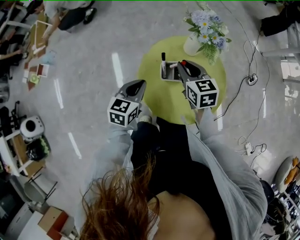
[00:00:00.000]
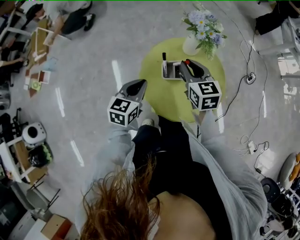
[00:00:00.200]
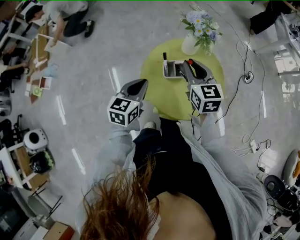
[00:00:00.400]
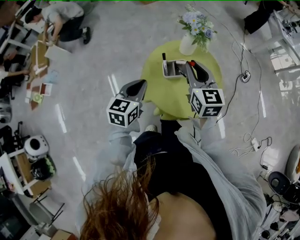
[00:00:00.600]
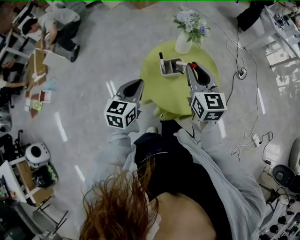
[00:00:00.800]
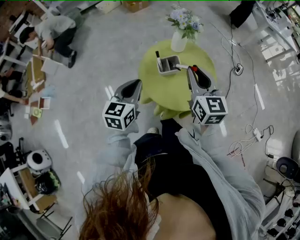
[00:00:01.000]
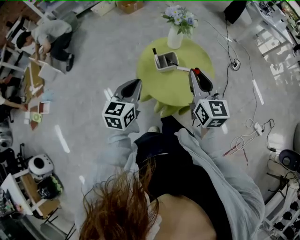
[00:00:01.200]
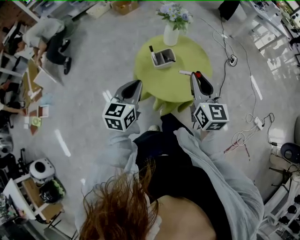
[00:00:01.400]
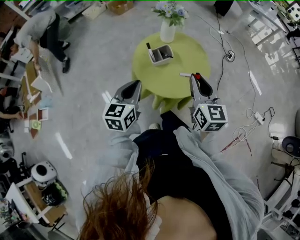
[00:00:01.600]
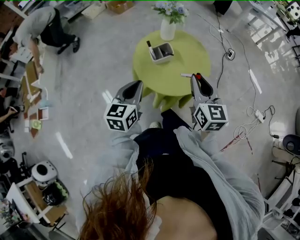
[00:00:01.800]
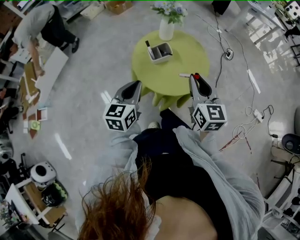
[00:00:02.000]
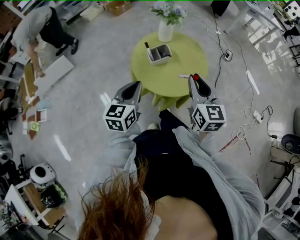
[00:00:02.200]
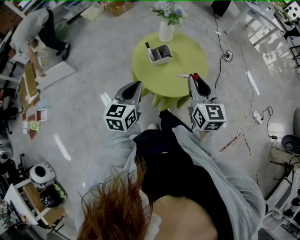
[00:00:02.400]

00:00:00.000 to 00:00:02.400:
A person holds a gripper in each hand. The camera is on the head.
00:00:00.000 to 00:00:01.200: The left gripper travels upward and backward by approximately 15 cm; the right gripper travels backward and upward by roughly 20 cm, and changes its angle by approximately 40 degrees.
00:00:01.200 to 00:00:02.400: The right gripper moves backward, roughly 5 cm.

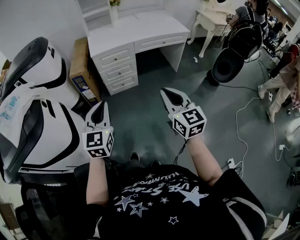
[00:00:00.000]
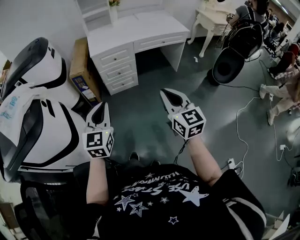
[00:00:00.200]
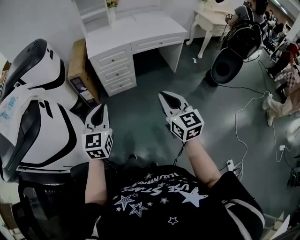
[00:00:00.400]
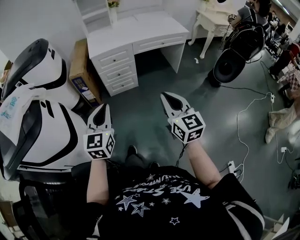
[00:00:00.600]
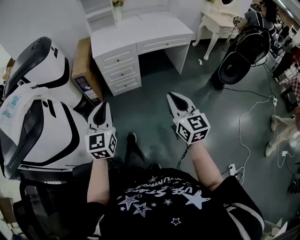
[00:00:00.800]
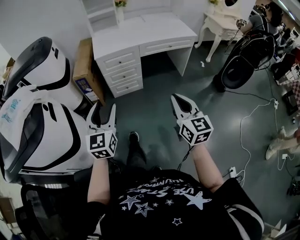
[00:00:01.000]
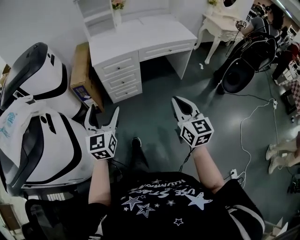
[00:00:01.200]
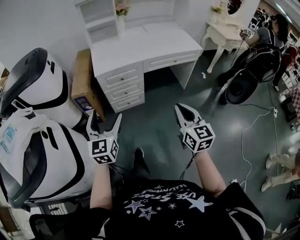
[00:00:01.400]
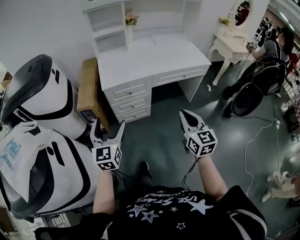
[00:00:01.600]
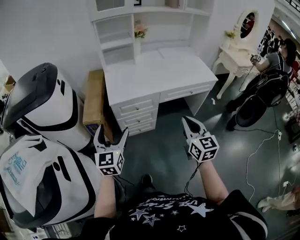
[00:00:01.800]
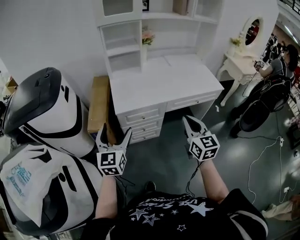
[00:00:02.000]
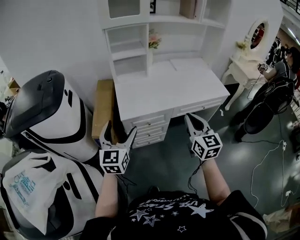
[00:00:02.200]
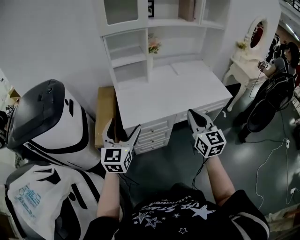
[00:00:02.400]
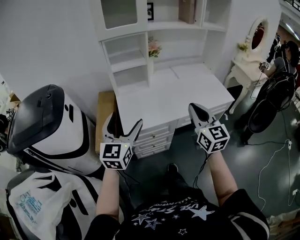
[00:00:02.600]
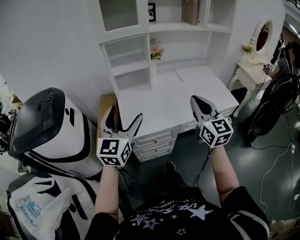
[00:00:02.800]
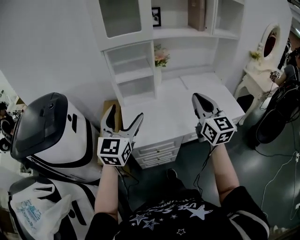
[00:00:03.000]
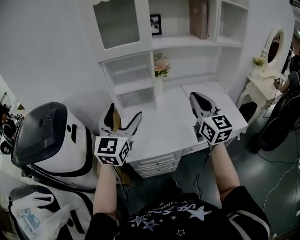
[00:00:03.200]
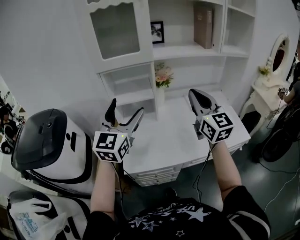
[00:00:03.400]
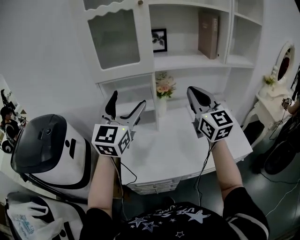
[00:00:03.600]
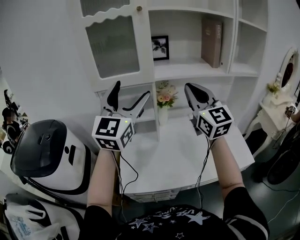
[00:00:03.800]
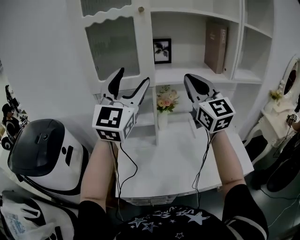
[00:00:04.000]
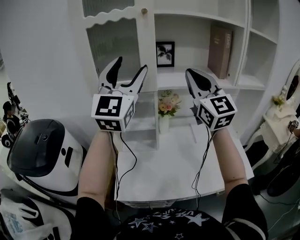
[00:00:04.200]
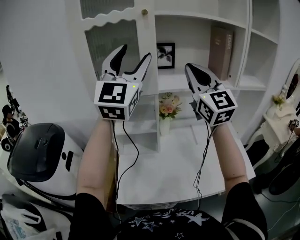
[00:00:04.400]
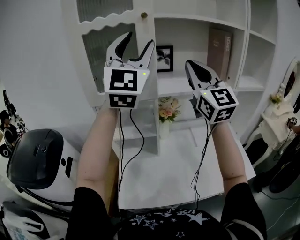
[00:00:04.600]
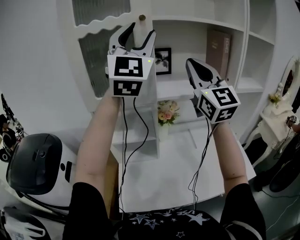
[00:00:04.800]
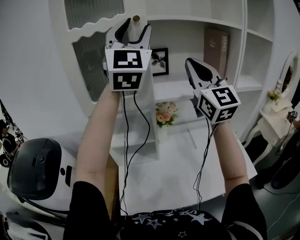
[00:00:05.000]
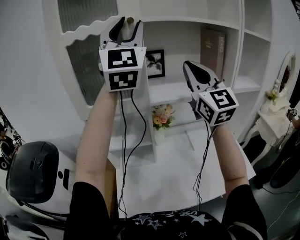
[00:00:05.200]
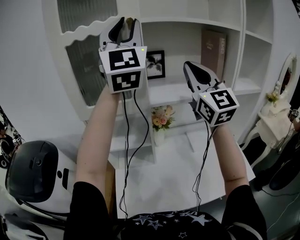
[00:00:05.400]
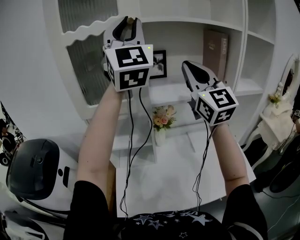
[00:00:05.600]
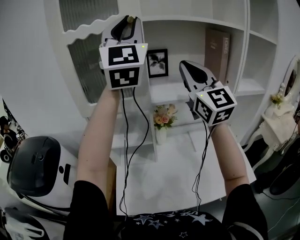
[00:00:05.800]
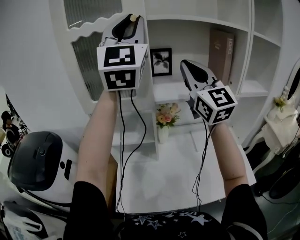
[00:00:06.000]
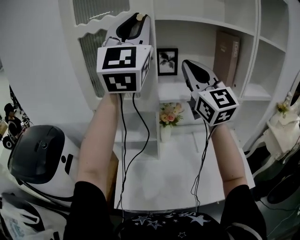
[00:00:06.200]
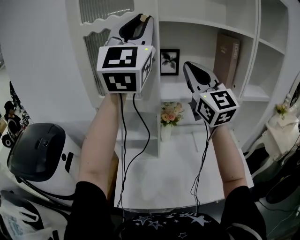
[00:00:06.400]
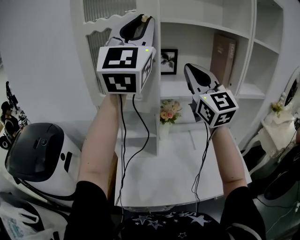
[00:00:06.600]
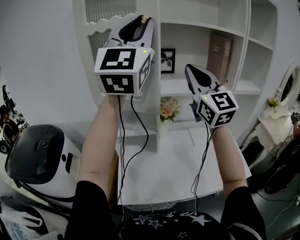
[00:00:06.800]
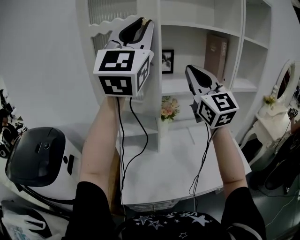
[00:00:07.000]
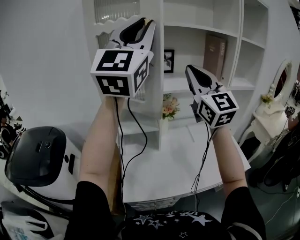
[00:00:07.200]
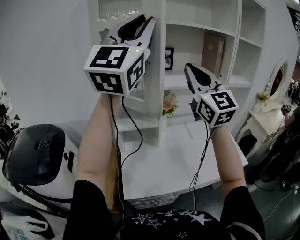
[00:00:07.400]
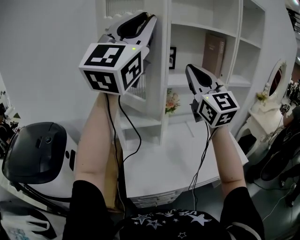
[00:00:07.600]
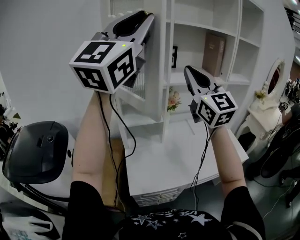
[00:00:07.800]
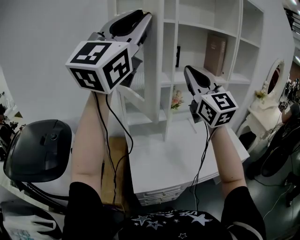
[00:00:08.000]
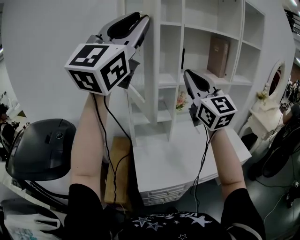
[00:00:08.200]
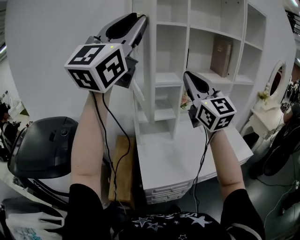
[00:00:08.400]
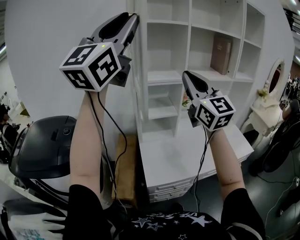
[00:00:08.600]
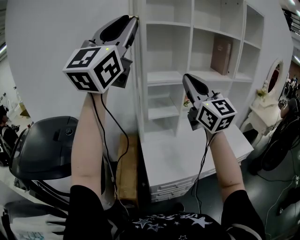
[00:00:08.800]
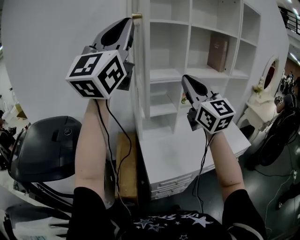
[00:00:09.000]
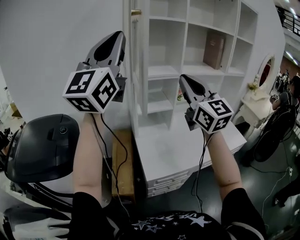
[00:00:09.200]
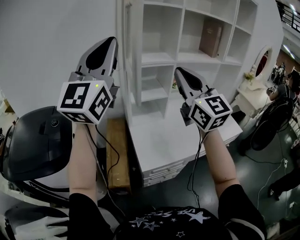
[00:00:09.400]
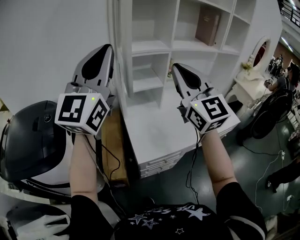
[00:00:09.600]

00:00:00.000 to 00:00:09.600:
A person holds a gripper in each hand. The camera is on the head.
00:00:00.000 to 00:00:01.600: The two grippers go about 25 cm forward. The left gripper opens its fingers.
00:00:01.600 to 00:00:03.200: Both grippers are carried forward, roughly 40 cm. Both grippers travel together upward, about 20 cm.
00:00:03.200 to 00:00:04.800: The right gripper moves forward and upward, about 35 cm, and turns by about 20 degrees. The left gripper shifts roughly 40 cm upward and forward, changes its angle by about 40 degrees, and closes.
00:00:04.800 to 00:00:06.400: The grippers stay close to where they were, moving slightly.
00:00:06.400 to 00:00:08.000: Both grippers move backward and to the left, roughly 20 cm. The left gripper swivels some 30 degrees.
00:00:08.000 to 00:00:09.600: The left gripper is displaced downward and to the left by approximately 20 cm. The right gripper goes approximately 15 cm backward, to the left and downward.

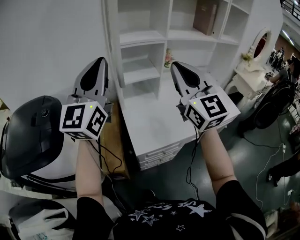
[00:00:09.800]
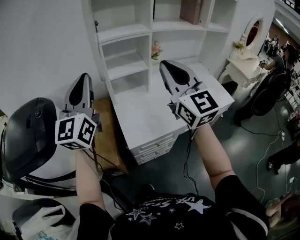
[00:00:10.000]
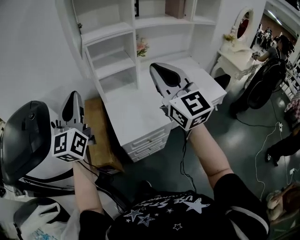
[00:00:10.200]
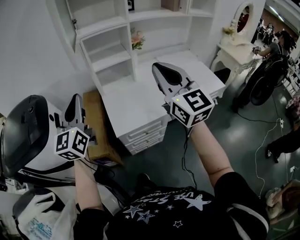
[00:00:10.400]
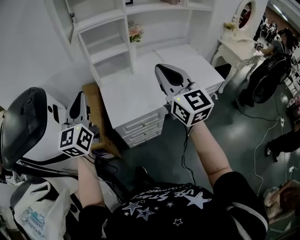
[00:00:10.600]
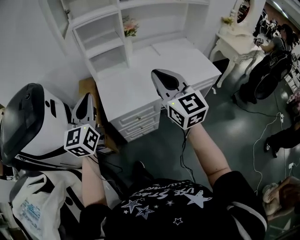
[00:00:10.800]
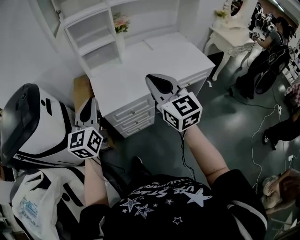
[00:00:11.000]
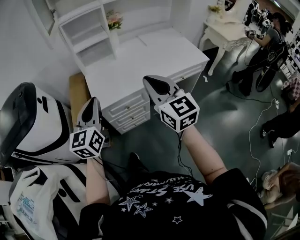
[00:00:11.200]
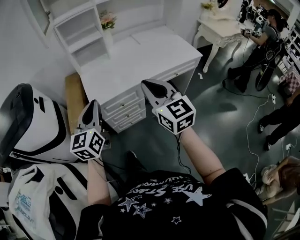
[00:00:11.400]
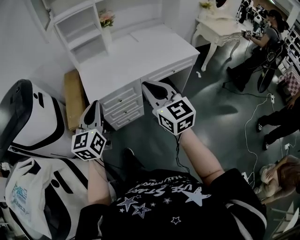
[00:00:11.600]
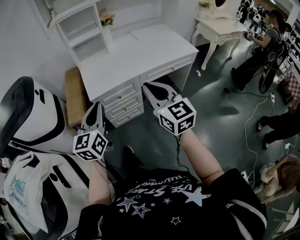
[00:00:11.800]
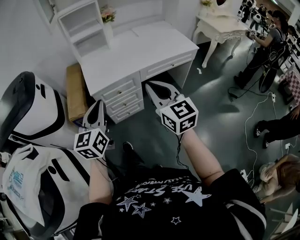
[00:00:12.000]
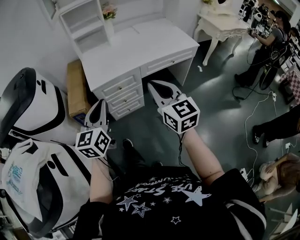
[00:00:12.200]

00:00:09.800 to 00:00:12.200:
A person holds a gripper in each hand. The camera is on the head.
00:00:09.800 to 00:00:11.000: The right gripper heads backward, downward and to the right, covering some 30 cm, while the left gripper moves downward, backward and to the right, about 30 cm, and swivels roughly 30 degrees.
00:00:11.000 to 00:00:12.200: The right gripper shifts approximately 20 cm backward. Meanwhile the left gripper travels backward and to the right by some 20 cm.

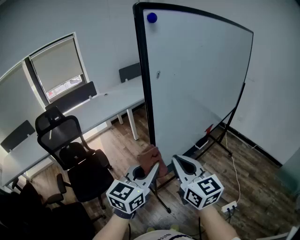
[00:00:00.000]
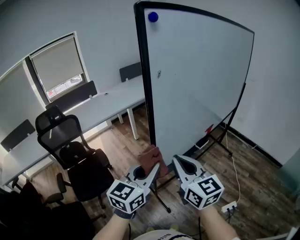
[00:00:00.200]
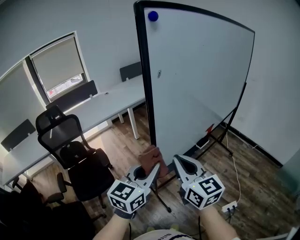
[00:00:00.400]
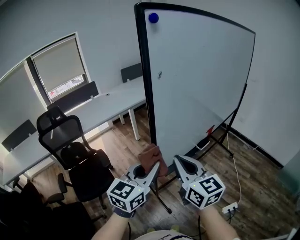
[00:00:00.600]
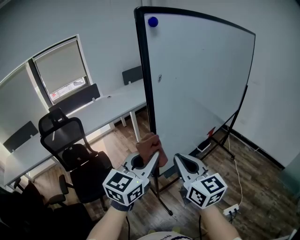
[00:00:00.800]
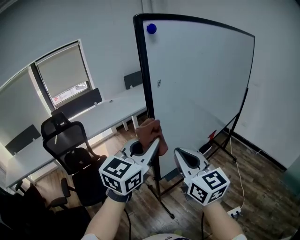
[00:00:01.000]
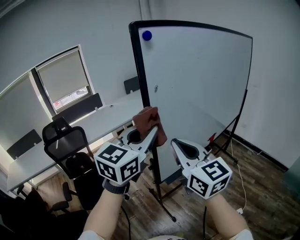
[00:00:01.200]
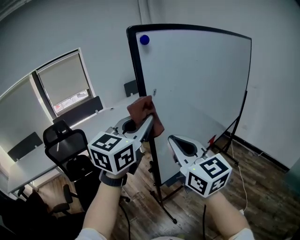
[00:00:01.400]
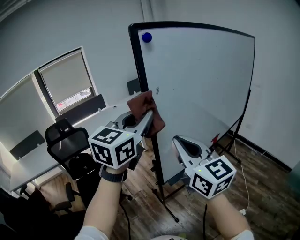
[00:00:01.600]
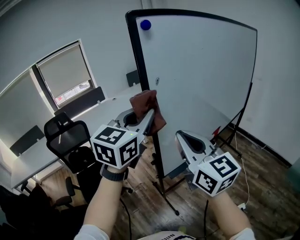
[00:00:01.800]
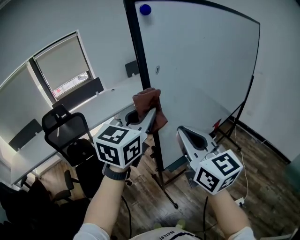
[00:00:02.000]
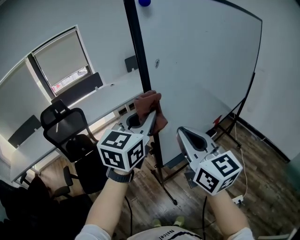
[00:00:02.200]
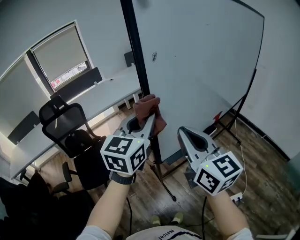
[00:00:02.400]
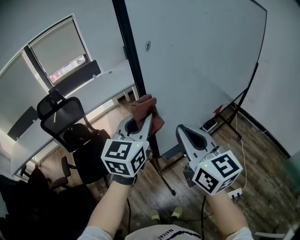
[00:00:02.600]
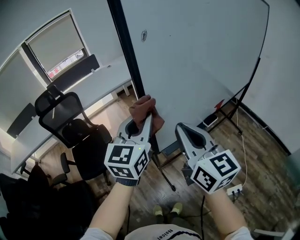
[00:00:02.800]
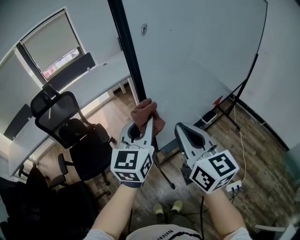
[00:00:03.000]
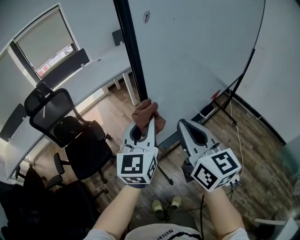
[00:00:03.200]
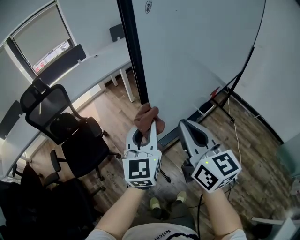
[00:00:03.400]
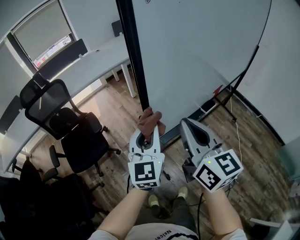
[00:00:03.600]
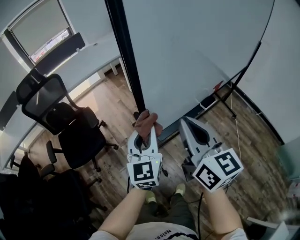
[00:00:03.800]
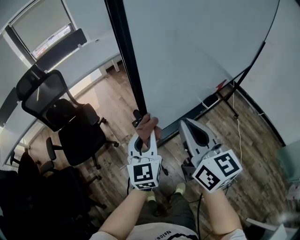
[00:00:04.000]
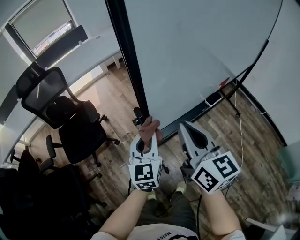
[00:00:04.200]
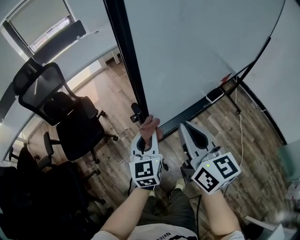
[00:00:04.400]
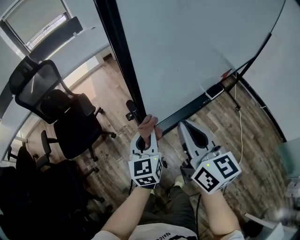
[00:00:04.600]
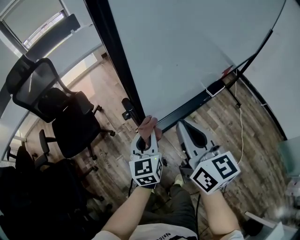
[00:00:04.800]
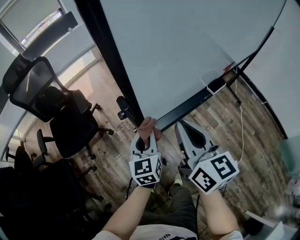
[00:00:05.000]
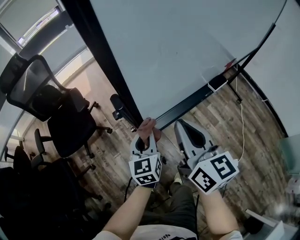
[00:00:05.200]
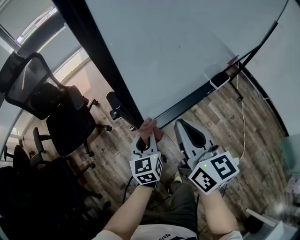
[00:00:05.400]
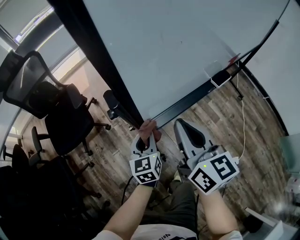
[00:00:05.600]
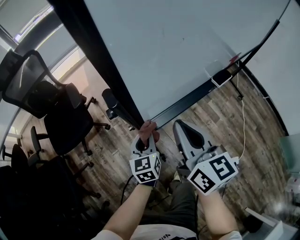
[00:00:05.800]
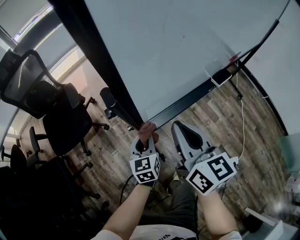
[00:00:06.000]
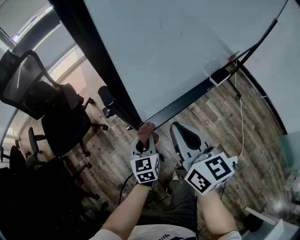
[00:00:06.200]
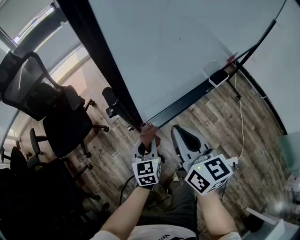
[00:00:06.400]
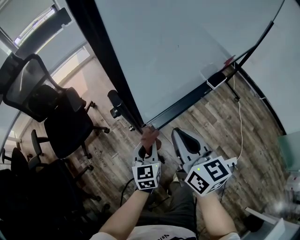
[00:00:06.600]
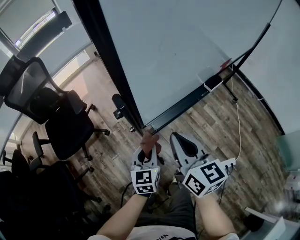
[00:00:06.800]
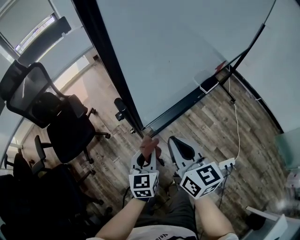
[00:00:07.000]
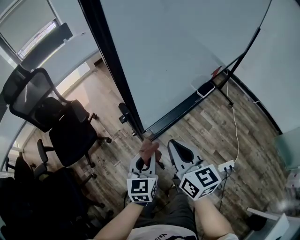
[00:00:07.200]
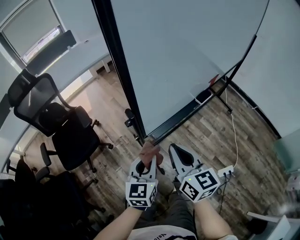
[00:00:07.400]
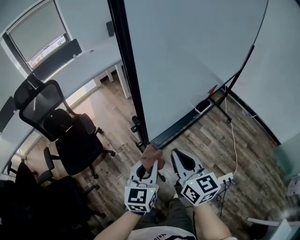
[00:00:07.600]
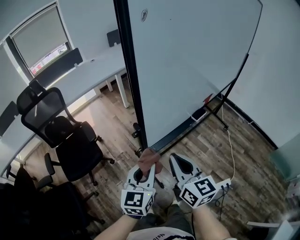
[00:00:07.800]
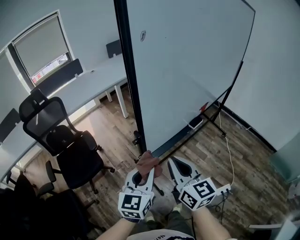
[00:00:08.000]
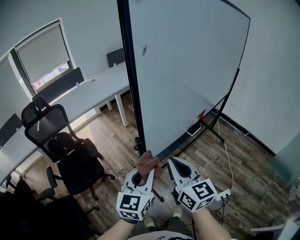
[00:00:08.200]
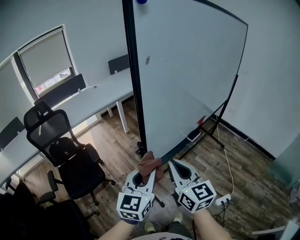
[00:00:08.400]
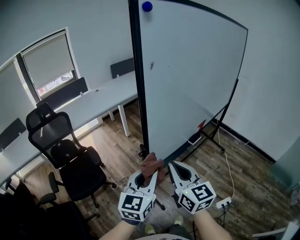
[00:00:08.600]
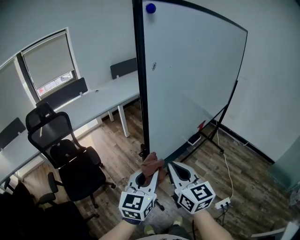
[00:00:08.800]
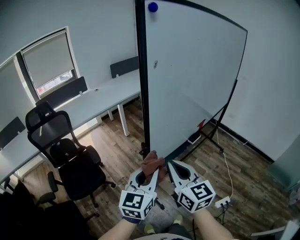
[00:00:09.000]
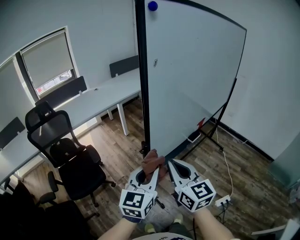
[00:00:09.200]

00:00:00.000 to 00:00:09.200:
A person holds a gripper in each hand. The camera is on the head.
00:00:00.000 to 00:00:01.600: The right gripper shifts approximately 10 cm upward. The left gripper shifts roughly 20 cm upward and forward.
00:00:01.600 to 00:00:03.000: The left gripper shifts some 20 cm downward, while the right gripper shifts some 15 cm downward.
00:00:03.000 to 00:00:04.600: The right gripper goes approximately 15 cm downward; the left gripper shifts some 30 cm downward, and turns by roughly 20 degrees.
00:00:04.600 to 00:00:06.200: The grippers both shift downward by some 15 cm.
00:00:06.200 to 00:00:07.600: The left gripper travels upward by about 25 cm, and turns by about 20 degrees, while the right gripper heads upward and backward, covering approximately 15 cm.
00:00:07.600 to 00:00:09.200: The two grippers go some 15 cm upward.
